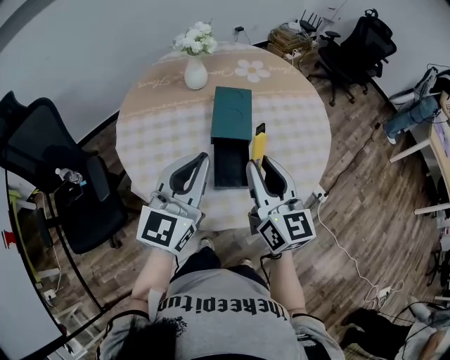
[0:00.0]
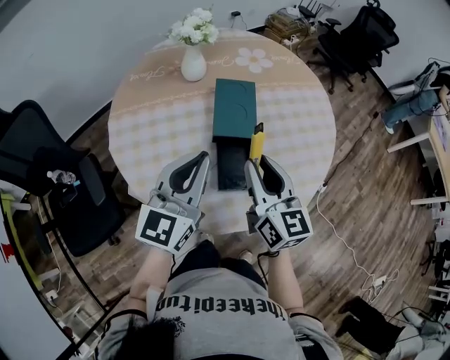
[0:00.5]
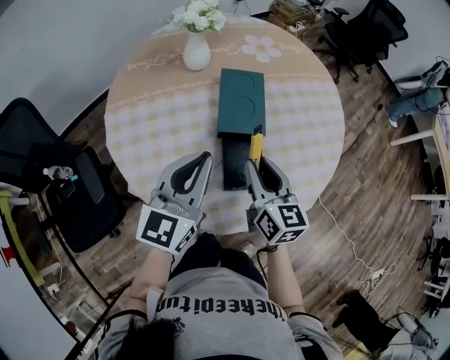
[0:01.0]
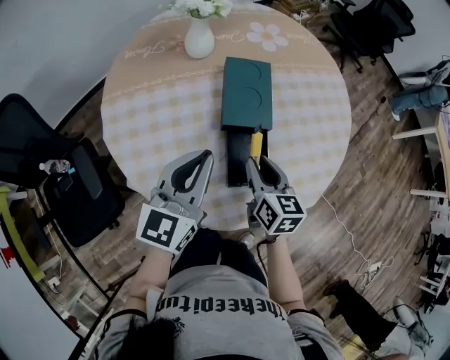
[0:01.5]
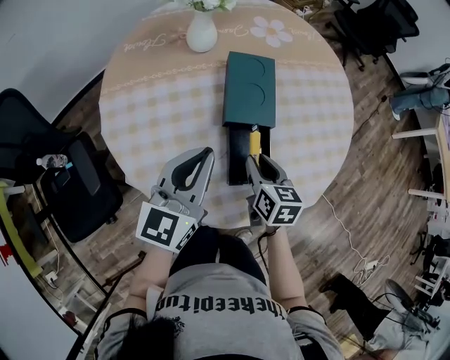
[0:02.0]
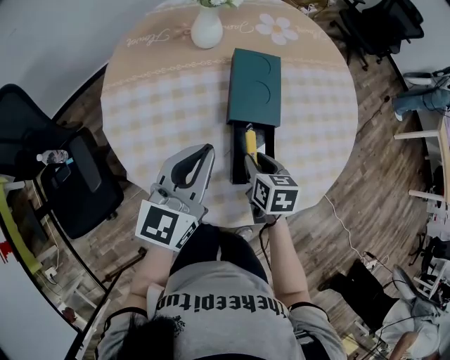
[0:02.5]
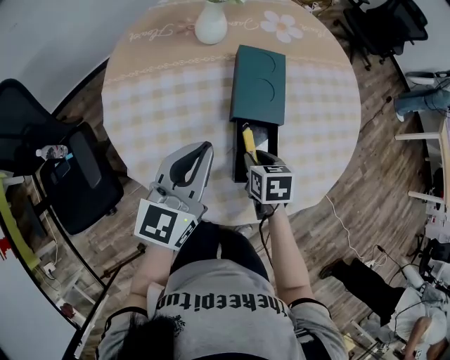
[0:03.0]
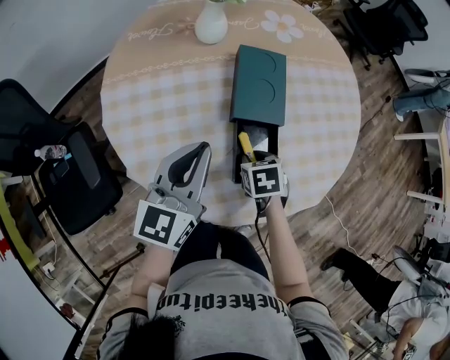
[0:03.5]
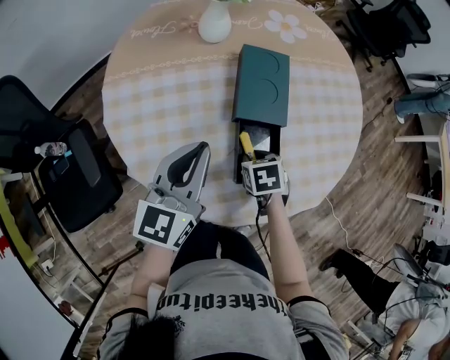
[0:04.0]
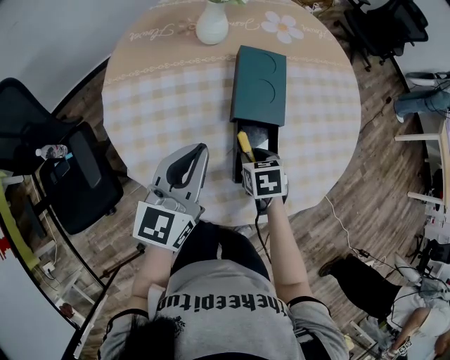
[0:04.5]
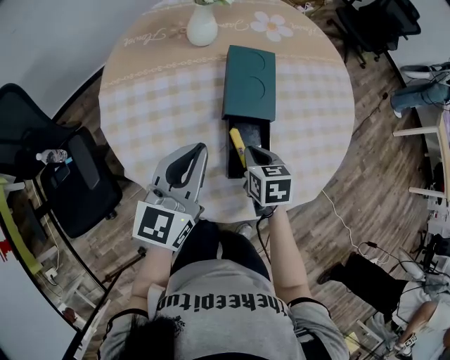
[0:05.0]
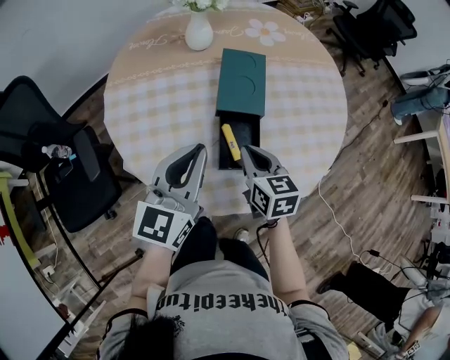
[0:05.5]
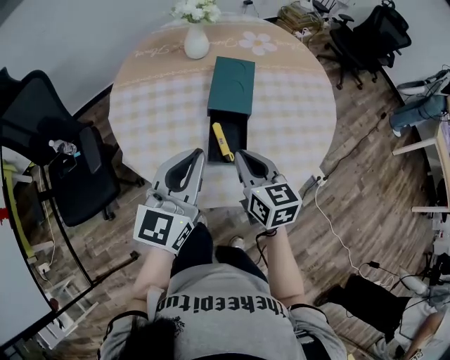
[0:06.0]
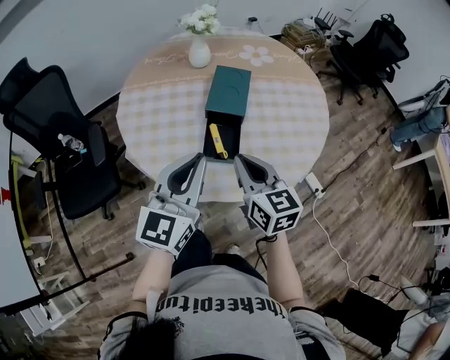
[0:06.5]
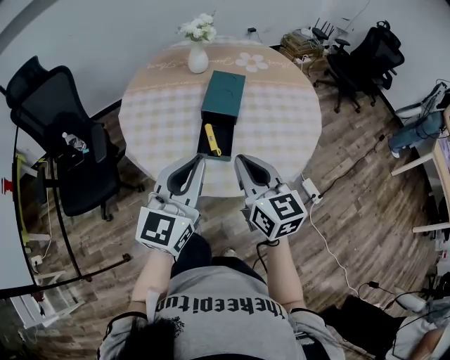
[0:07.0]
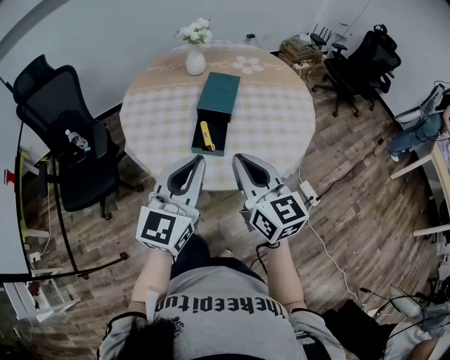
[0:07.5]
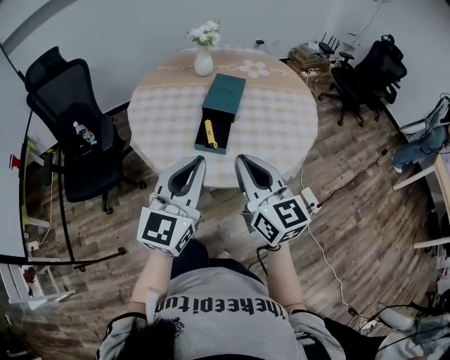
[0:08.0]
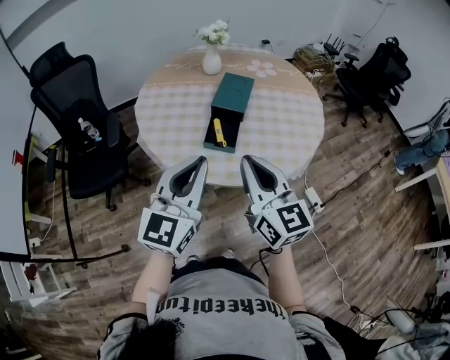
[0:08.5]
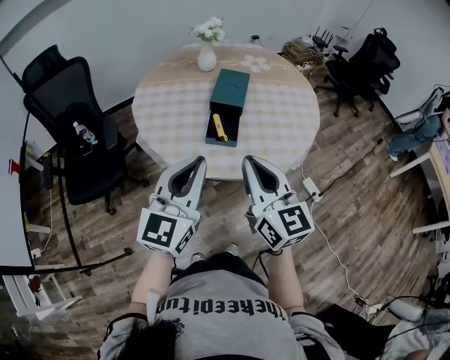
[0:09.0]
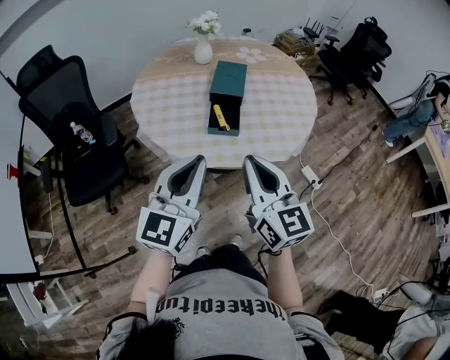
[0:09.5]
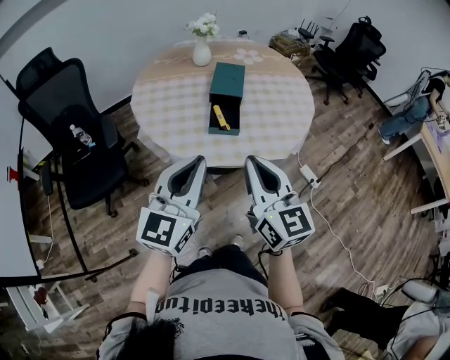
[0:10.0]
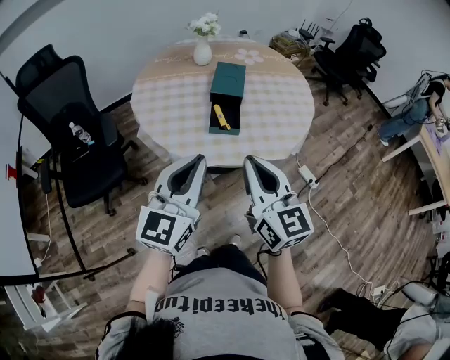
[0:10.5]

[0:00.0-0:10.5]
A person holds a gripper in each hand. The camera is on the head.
0:00.0 to 0:02.0: The right gripper moves downward, about 20 cm, and tilts its fingers some 40 degrees downward; the left gripper moves downward and forward, approximately 15 cm.
0:02.0 to 0:04.0: The right gripper shifts about 10 cm downward, and tilts its fingers approximately 30 degrees downward.
0:04.0 to 0:06.5: The right gripper heads upward and backward, covering roughly 30 cm, tips its fingers upward by about 50 degrees, and closes its fingers, while the left gripper shifts approximately 25 cm backward, to the right and upward.
0:06.5 to 0:08.5: The left gripper shifts roughly 15 cm backward. Meanwhile the right gripper goes roughly 15 cm backward and upward.
0:08.5 to 0:10.5: The left gripper goes about 10 cm to the left and backward. The right gripper heads backward and to the left, covering some 10 cm.

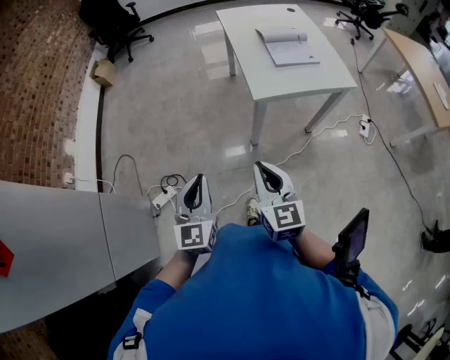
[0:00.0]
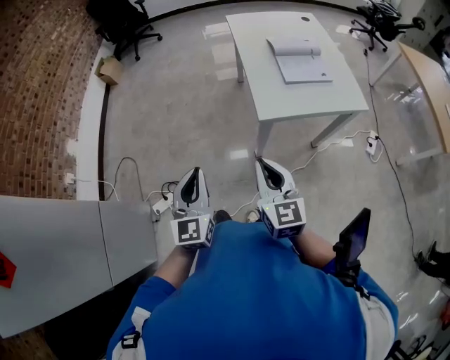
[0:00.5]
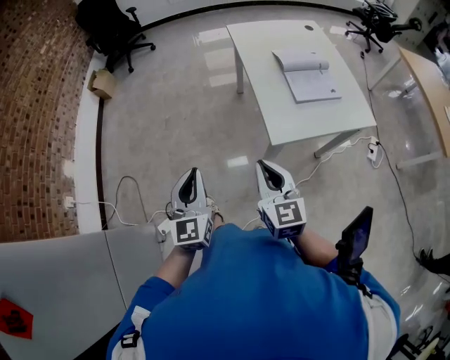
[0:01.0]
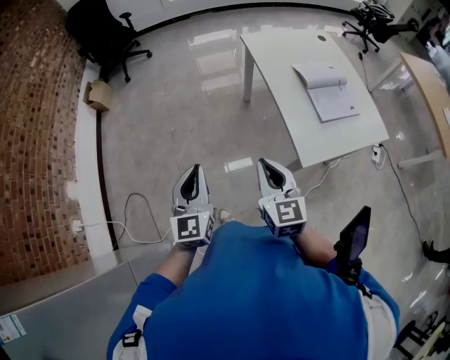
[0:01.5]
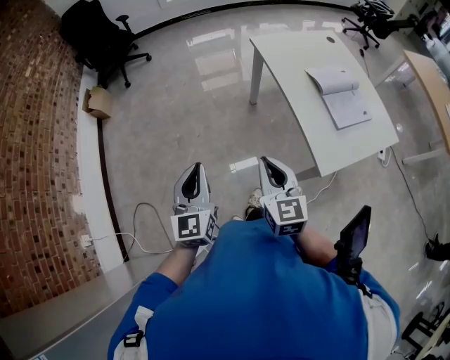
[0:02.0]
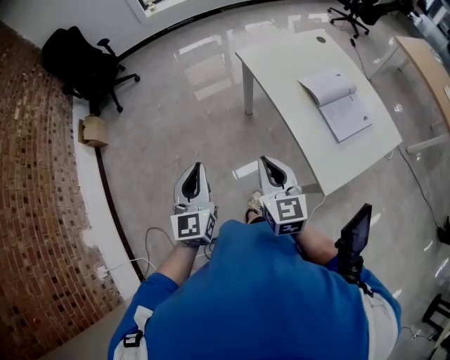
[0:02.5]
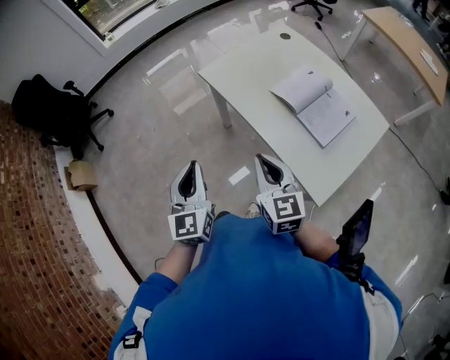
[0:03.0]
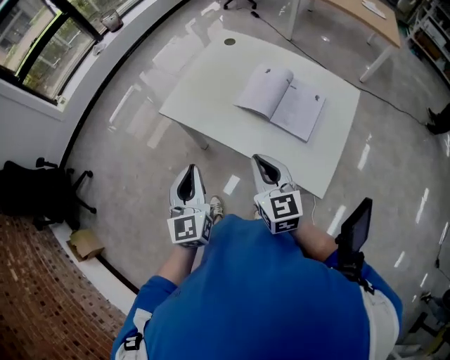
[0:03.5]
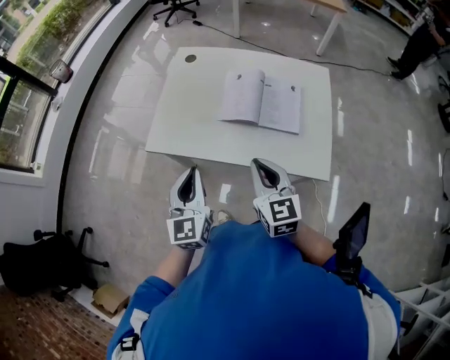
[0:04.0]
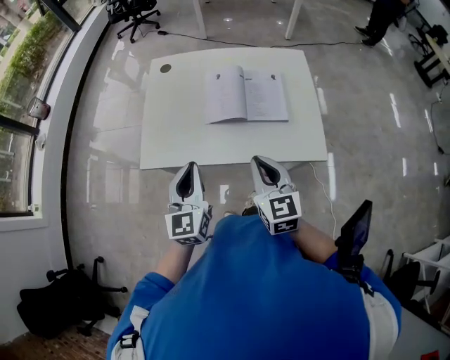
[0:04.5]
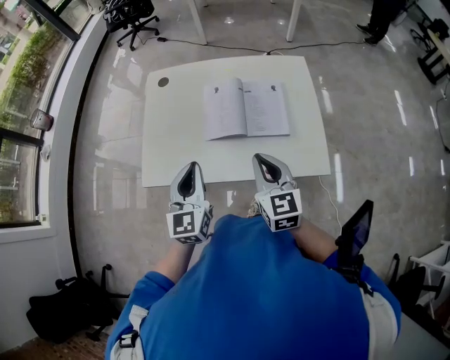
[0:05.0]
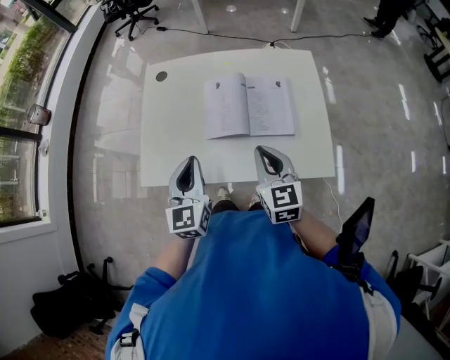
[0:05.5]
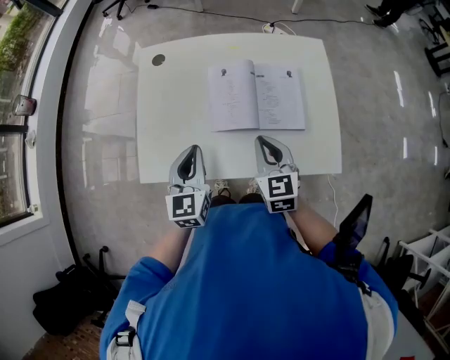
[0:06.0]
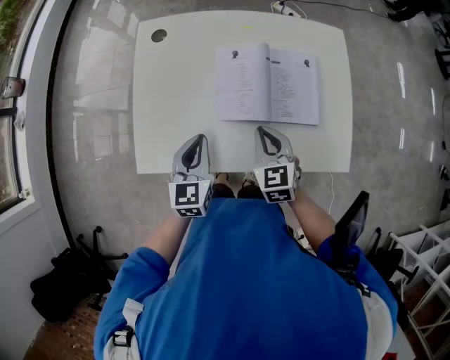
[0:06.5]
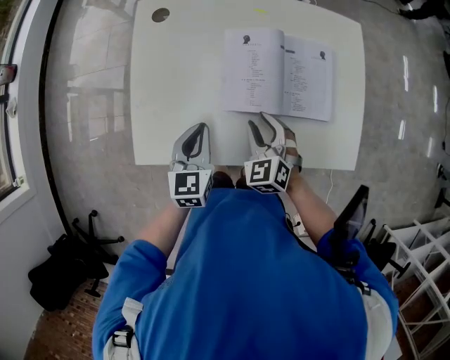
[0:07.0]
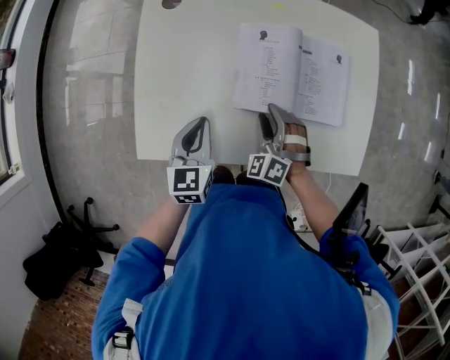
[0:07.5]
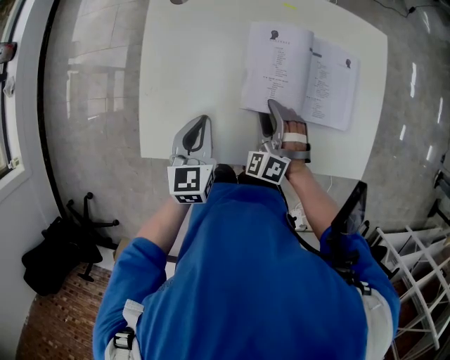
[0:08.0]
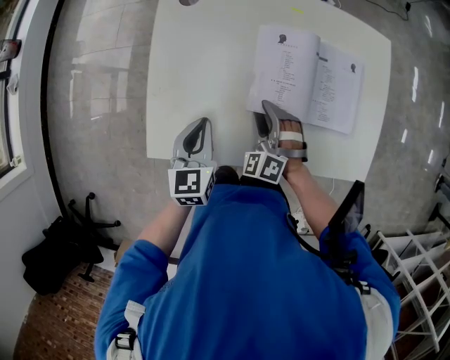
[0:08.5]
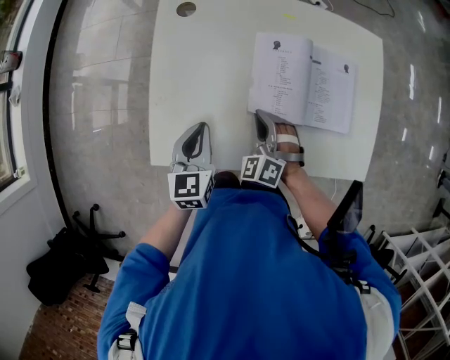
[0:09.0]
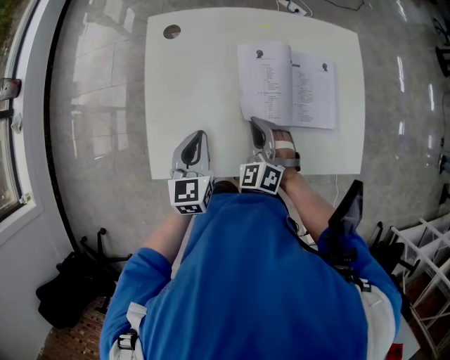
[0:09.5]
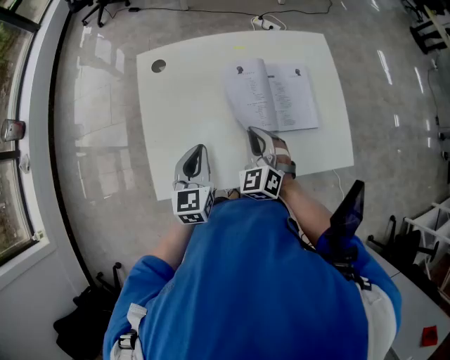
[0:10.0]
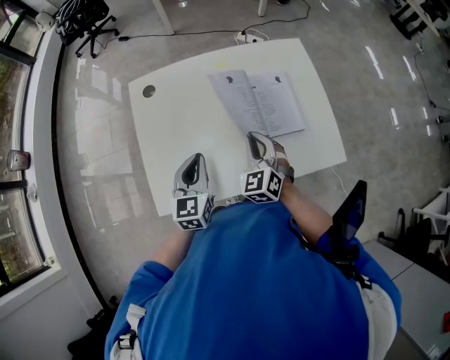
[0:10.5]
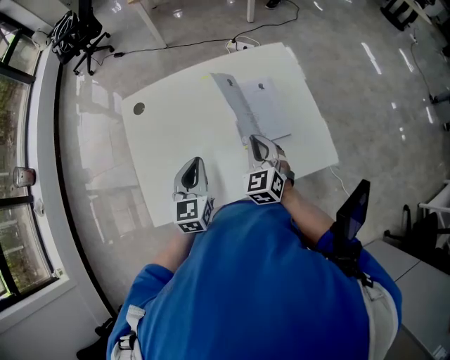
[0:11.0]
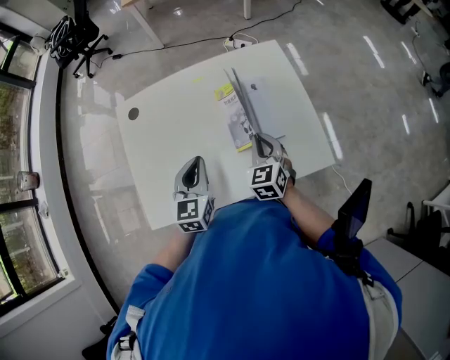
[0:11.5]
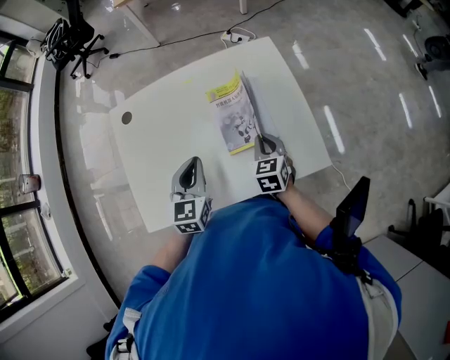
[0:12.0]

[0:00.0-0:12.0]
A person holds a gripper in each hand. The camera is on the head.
0:00.0 to 0:02.0: Both grippers are carried forward and to the left, approximately 50 cm.
0:02.0 to 0:04.0: The right gripper changes place by roughly 35 cm, and rotates some 60 degrees. The left gripper shifts by approximately 50 cm, and rotates about 60 degrees.
0:04.0 to 0:06.0: The left gripper is displaced forward by roughly 20 cm, while the right gripper goes roughly 20 cm forward and downward.
0:06.0 to 0:08.0: Both grippers move downward, to the left and forward, about 20 cm. The right gripper rolls counterclockwise, seen from behind, by about 60 degrees, and opens.
0:08.0 to 0:10.0: The two grippers go approximately 10 cm upward. The right gripper swivels some 30 degrees, and closes.
0:10.0 to 0:12.0: Both grippers move to the right, roughly 20 cm. The right gripper changes its angle by roughly 40 degrees.

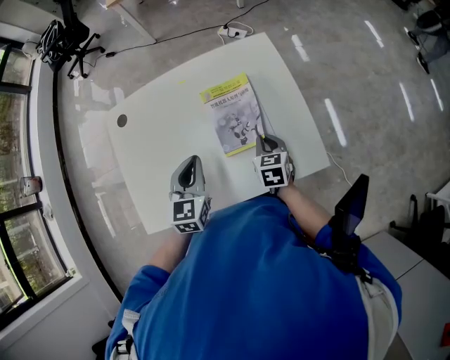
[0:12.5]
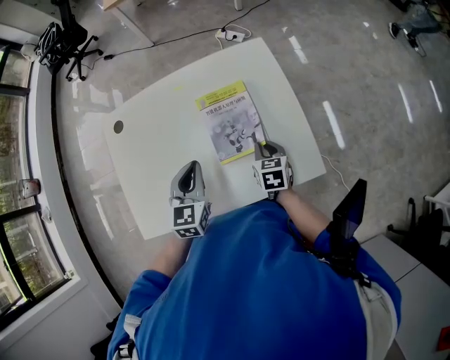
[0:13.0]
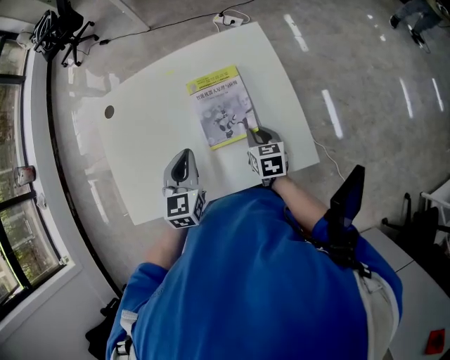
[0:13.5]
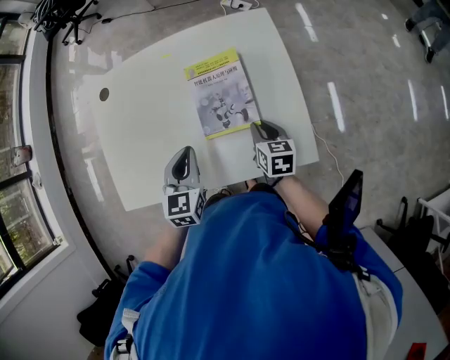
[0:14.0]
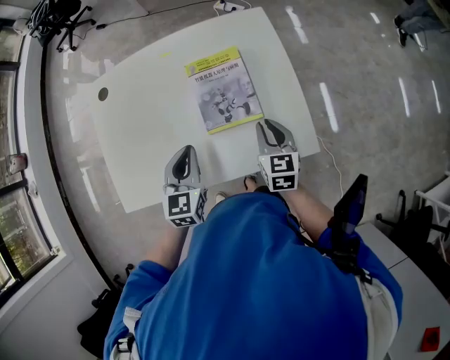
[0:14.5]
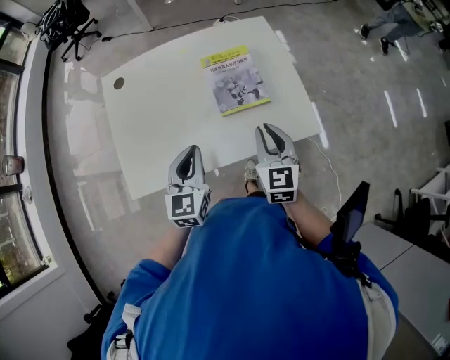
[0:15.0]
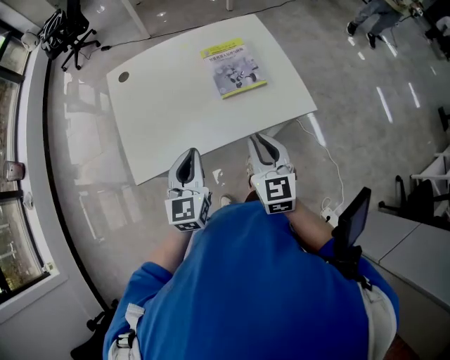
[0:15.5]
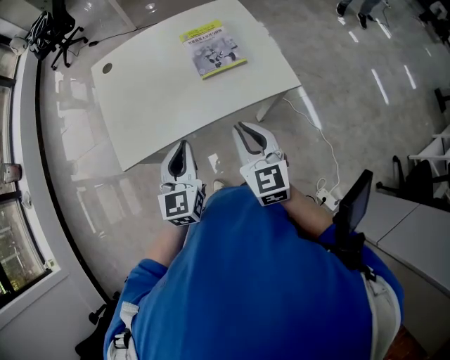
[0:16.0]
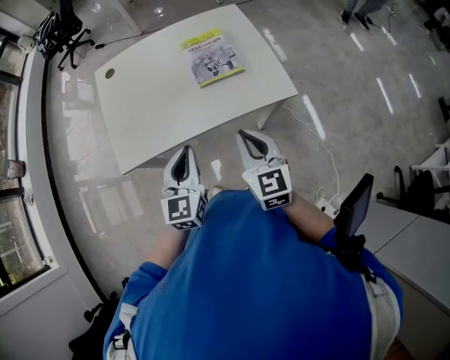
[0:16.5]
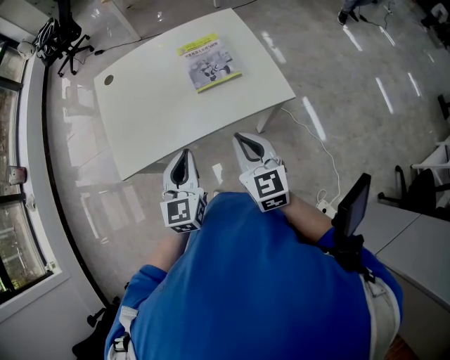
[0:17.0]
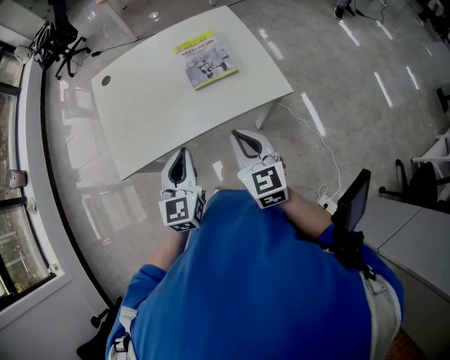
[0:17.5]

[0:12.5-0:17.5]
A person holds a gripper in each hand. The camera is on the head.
0:12.5 to 0:15.0: The right gripper shifts some 20 cm upward and backward, and turns by approximately 30 degrees. Meanwhile the left gripper shifts about 10 cm backward.
0:15.0 to 0:17.5: The two grippers go some 15 cm backward.
